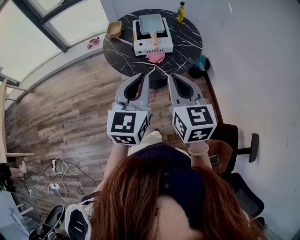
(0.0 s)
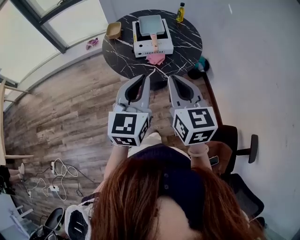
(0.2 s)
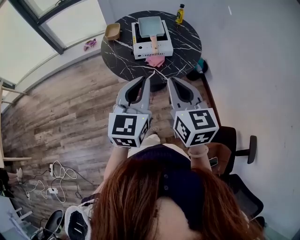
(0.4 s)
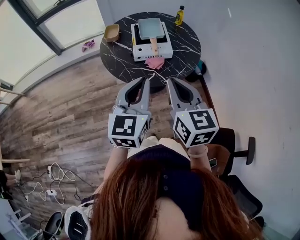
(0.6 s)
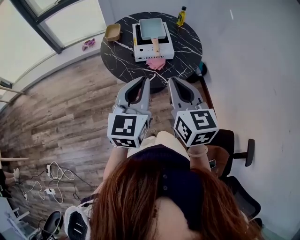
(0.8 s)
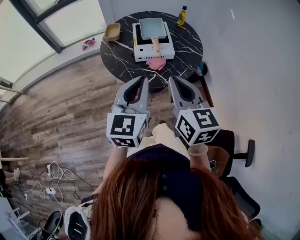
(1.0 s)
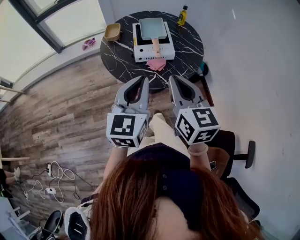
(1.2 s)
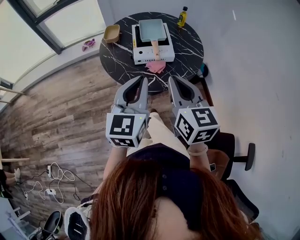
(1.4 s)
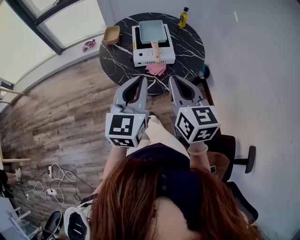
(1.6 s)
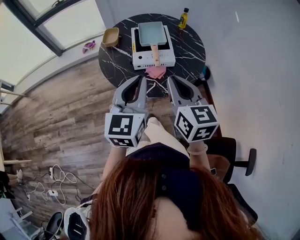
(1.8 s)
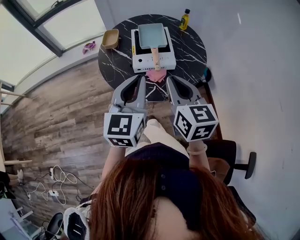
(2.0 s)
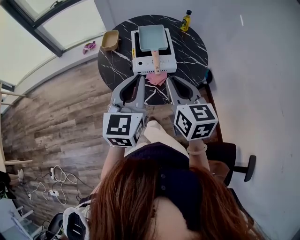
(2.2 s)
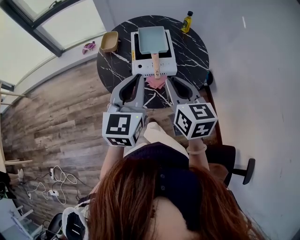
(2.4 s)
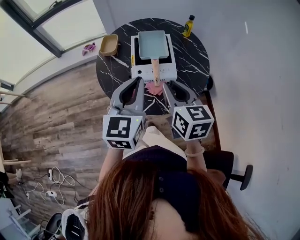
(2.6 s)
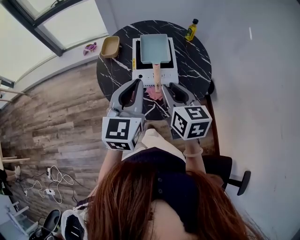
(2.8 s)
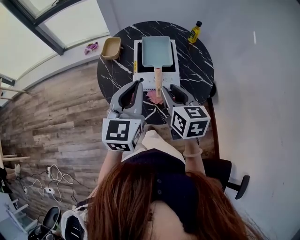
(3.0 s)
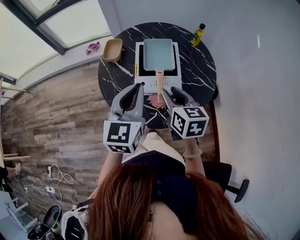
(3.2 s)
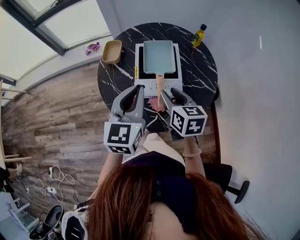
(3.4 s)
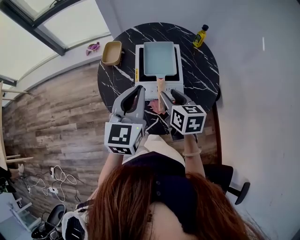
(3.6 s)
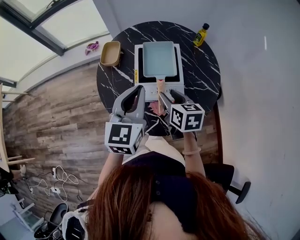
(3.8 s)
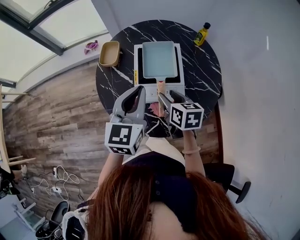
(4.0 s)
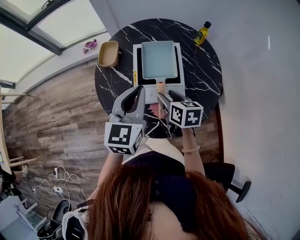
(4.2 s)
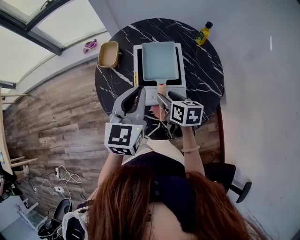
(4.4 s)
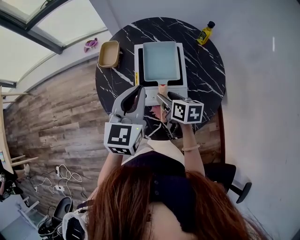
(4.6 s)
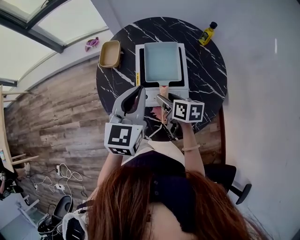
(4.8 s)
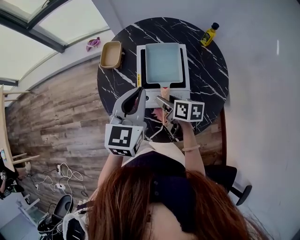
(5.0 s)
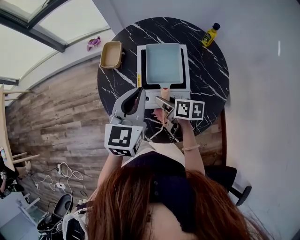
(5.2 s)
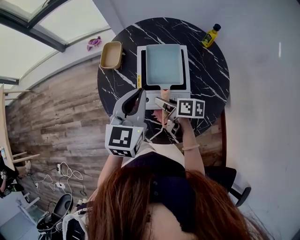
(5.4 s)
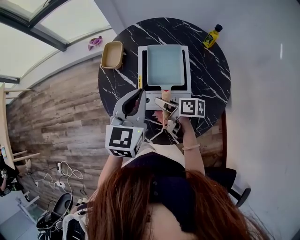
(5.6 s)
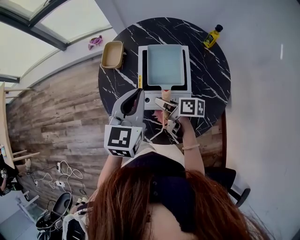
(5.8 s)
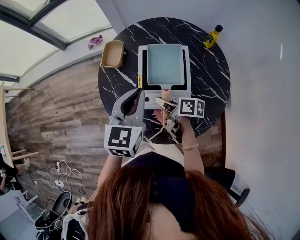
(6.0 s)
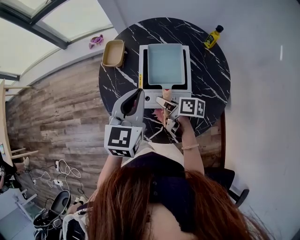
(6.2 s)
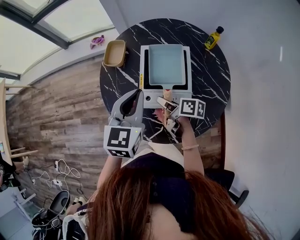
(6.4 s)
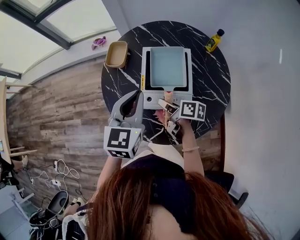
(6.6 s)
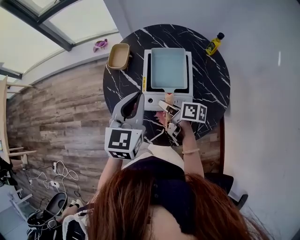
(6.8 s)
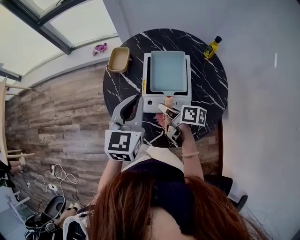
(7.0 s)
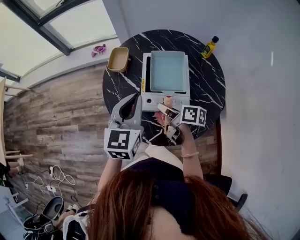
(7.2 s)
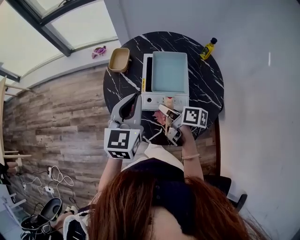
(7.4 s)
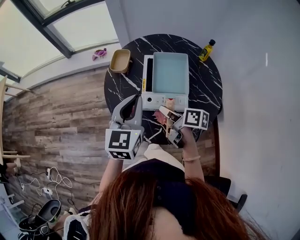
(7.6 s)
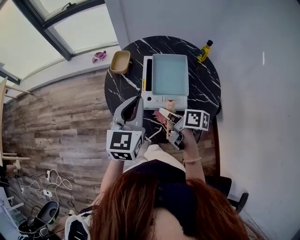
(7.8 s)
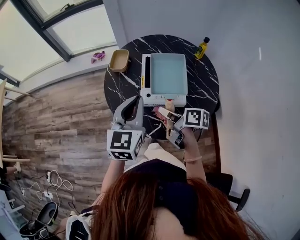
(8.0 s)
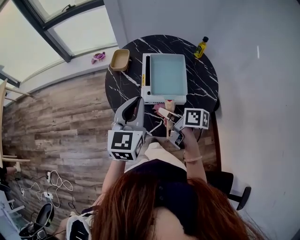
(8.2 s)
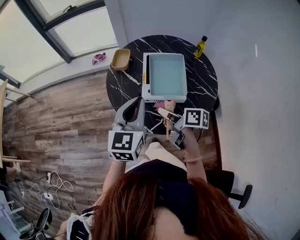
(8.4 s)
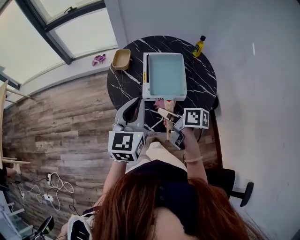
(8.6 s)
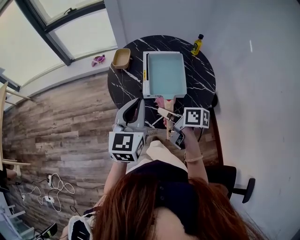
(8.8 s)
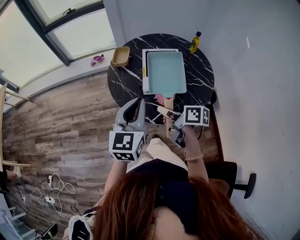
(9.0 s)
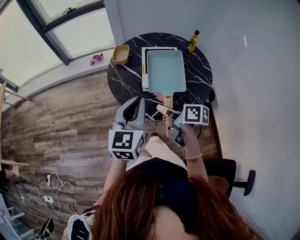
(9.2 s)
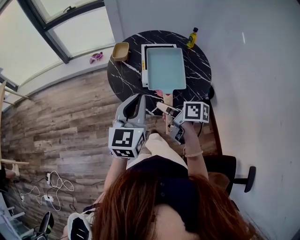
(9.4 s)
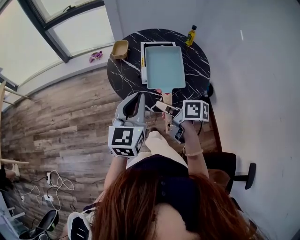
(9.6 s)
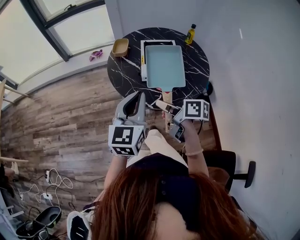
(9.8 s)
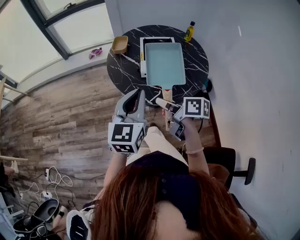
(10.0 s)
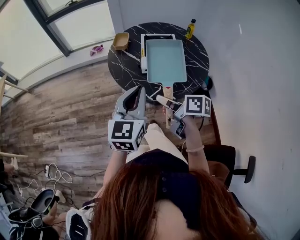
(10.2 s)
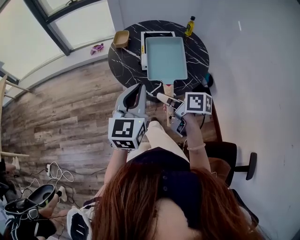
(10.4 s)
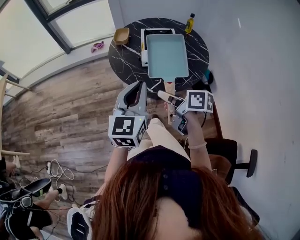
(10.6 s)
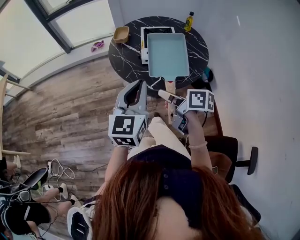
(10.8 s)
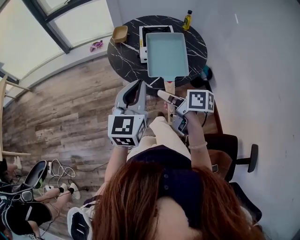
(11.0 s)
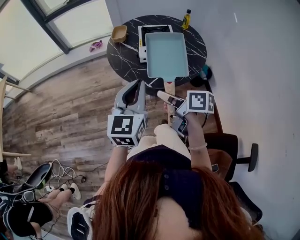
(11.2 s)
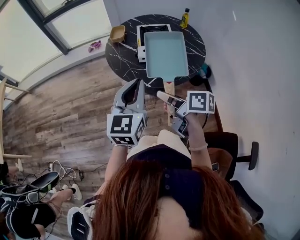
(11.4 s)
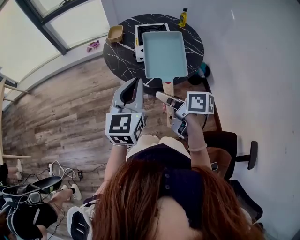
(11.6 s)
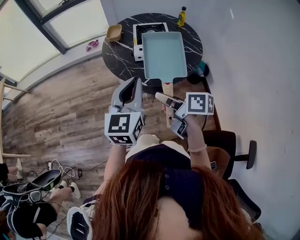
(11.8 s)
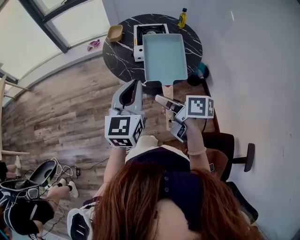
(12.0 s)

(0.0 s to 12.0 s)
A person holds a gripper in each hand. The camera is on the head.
0.0 s - 1.6 s: Both grippers move forward, roughly 10 cm.
1.6 s - 3.0 s: The left gripper heads forward, covering about 20 cm. Meanwhile the right gripper is displaced forward and downward by some 20 cm, and opens up.
3.0 s - 4.4 s: The left gripper is displaced forward by approximately 10 cm; the right gripper shifts approximately 15 cm downward and forward, turns by some 20 degrees, and opens up.
4.4 s - 6.0 s: The right gripper ends up approximately 5 cm from where it was, changes its angle by about 30 degrees, and closes up.
6.0 s - 7.6 s: The right gripper is displaced upward and backward by roughly 10 cm. Meanwhile the left gripper travels backward, to the left and upward by about 10 cm.
7.6 s - 9.0 s: Both grippers move backward and to the left, some 15 cm.
9.0 s - 10.4 s: Both grippers travel together backward, about 10 cm.
10.4 s - 12.0 s: The right gripper shifts some 10 cm backward; the left gripper changes place by some 5 cm.

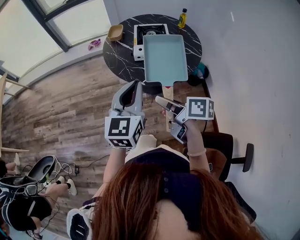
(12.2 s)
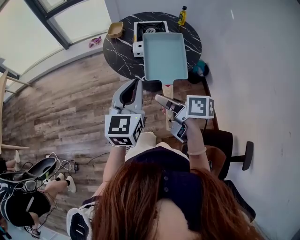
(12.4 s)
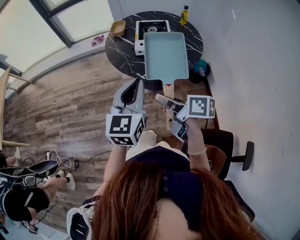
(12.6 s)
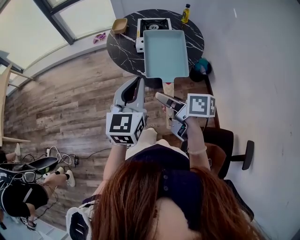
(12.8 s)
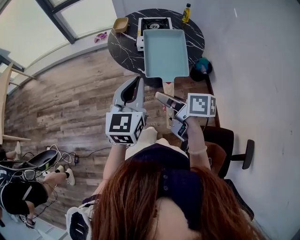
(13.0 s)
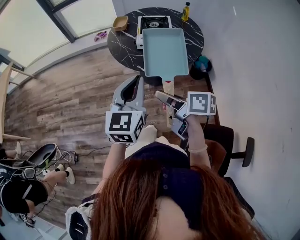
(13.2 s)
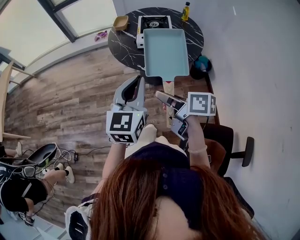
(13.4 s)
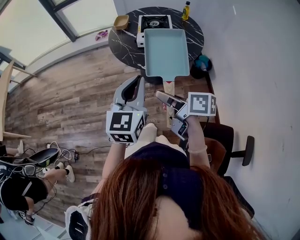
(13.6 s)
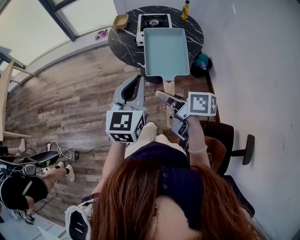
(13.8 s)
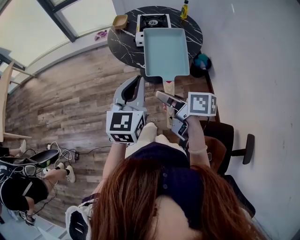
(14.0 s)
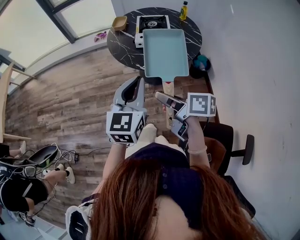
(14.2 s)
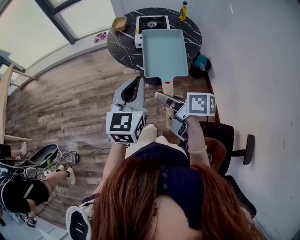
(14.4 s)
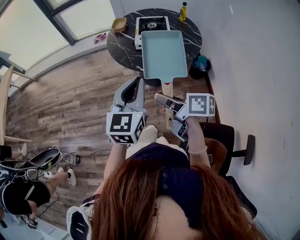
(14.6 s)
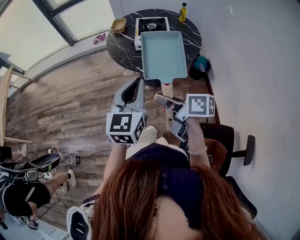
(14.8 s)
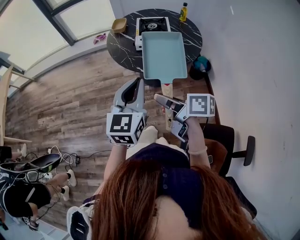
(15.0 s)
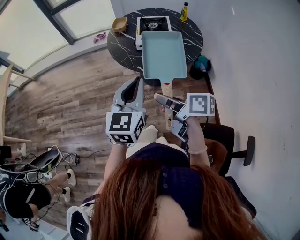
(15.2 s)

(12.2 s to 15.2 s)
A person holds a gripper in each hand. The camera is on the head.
12.2 s - 13.8 s: The two grippers go roughly 10 cm backward.
13.8 s - 15.2 s: There are only small adjustments of the grippers.

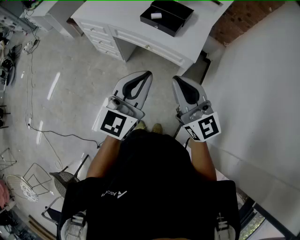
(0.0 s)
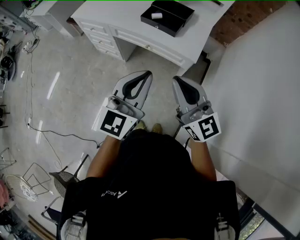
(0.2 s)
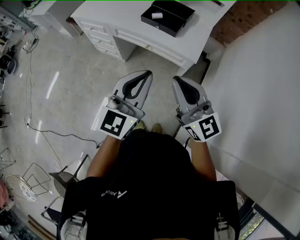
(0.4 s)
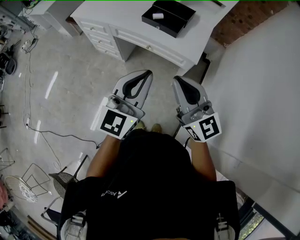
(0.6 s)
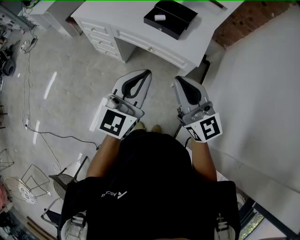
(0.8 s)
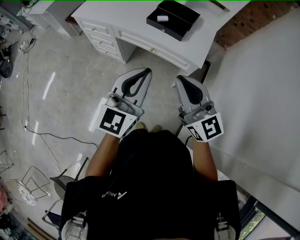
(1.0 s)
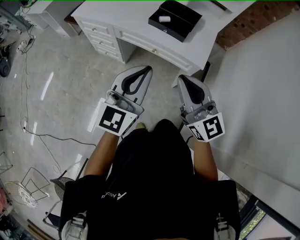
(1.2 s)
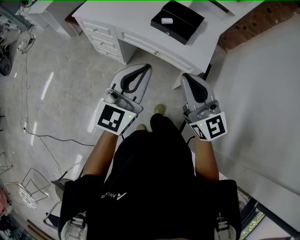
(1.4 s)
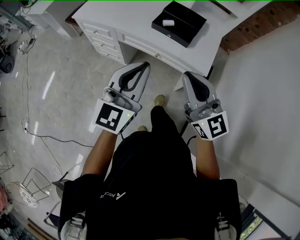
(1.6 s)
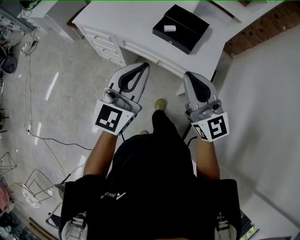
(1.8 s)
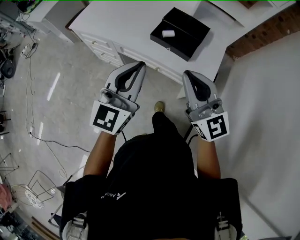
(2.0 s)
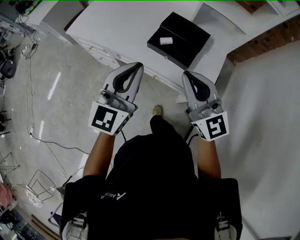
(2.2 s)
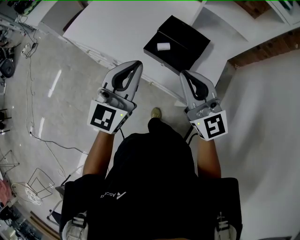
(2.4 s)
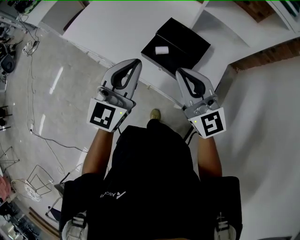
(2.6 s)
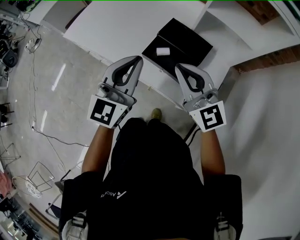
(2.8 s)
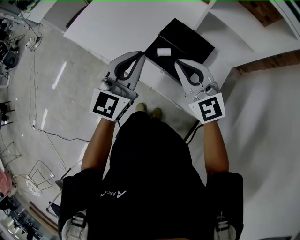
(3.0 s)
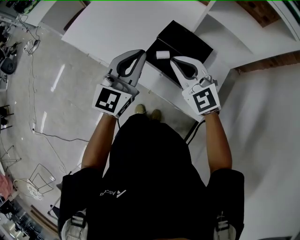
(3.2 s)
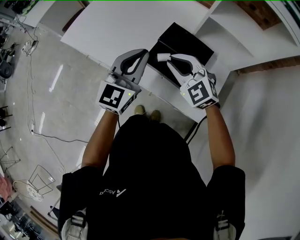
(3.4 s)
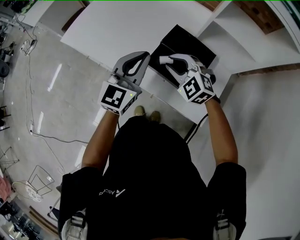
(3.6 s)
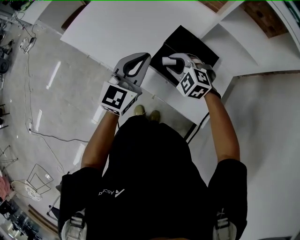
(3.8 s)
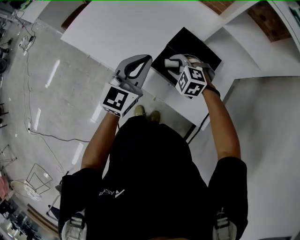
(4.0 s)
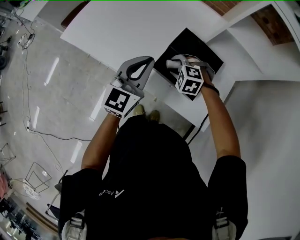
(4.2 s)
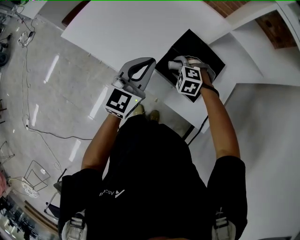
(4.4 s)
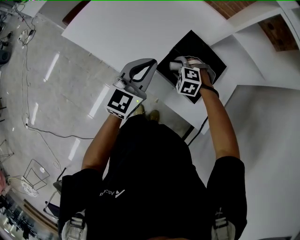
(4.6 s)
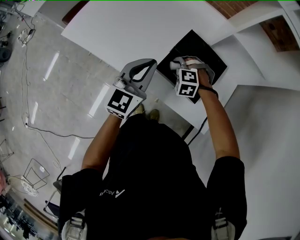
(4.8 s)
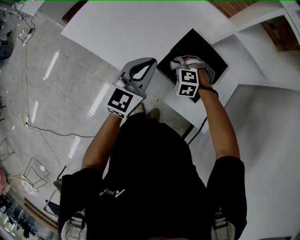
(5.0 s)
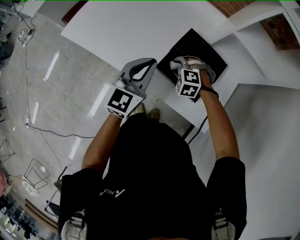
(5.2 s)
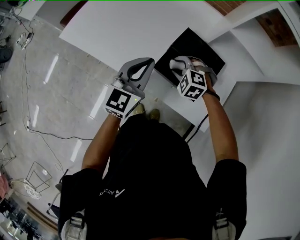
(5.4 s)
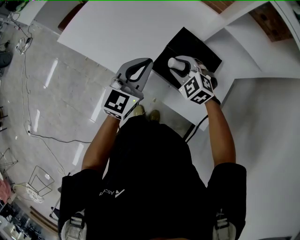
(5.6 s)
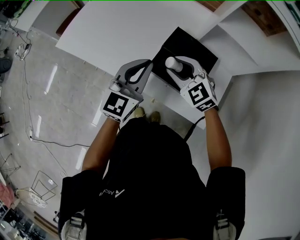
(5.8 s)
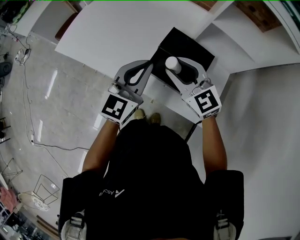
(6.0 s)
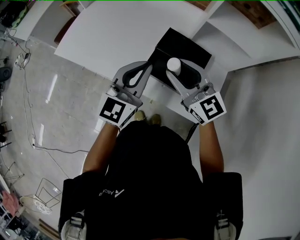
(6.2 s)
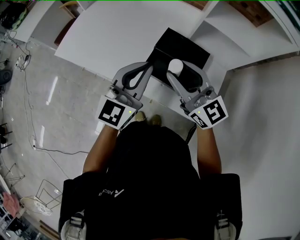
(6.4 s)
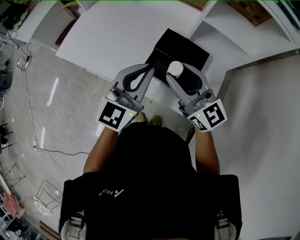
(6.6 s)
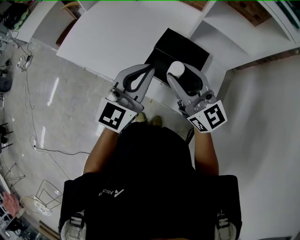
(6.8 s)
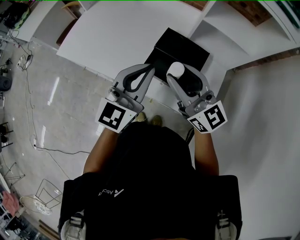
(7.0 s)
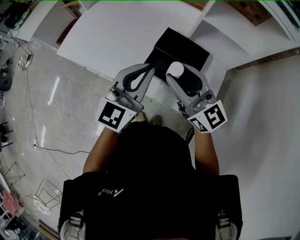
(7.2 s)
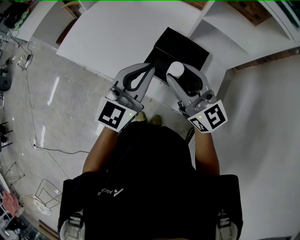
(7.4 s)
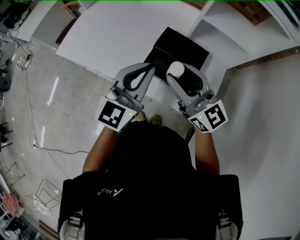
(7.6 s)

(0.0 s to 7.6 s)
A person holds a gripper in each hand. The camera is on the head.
0.0 s - 1.6 s: The two grippers go approximately 15 cm forward and to the left.
1.6 s - 3.0 s: The grippers both shift forward by roughly 30 cm. The right gripper turns by about 20 degrees.
3.0 s - 4.6 s: The right gripper is displaced downward and forward by roughly 30 cm, angles its fingers downward, by approximately 60 degrees, and opens its fingers. The left gripper travels forward and downward by roughly 15 cm.
4.6 s - 6.0 s: The left gripper ends up some 5 cm from where it was; the right gripper travels upward by approximately 20 cm, and tips its fingers upward by some 50 degrees.
6.0 s - 7.6 s: The right gripper travels upward and backward by roughly 10 cm, and turns by some 30 degrees; the left gripper ends up roughly 5 cm from where it was.

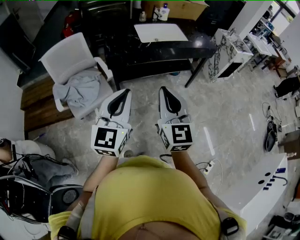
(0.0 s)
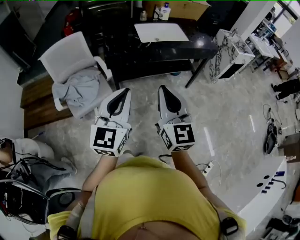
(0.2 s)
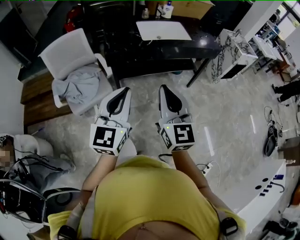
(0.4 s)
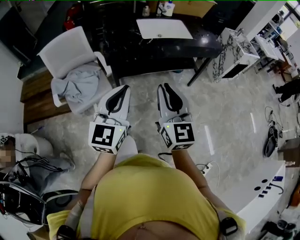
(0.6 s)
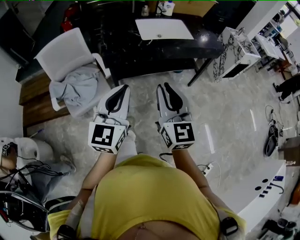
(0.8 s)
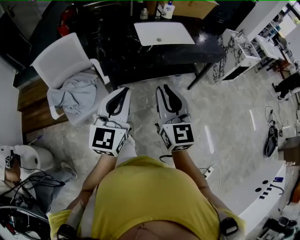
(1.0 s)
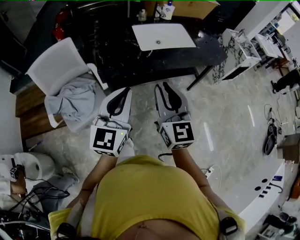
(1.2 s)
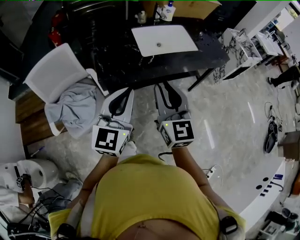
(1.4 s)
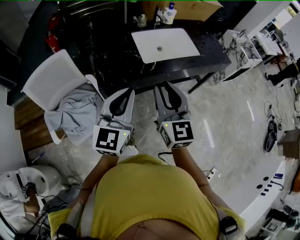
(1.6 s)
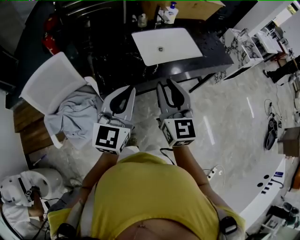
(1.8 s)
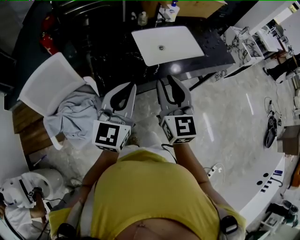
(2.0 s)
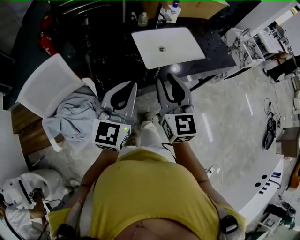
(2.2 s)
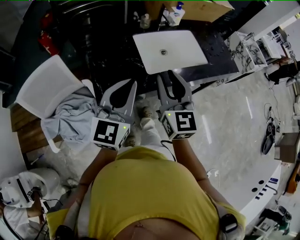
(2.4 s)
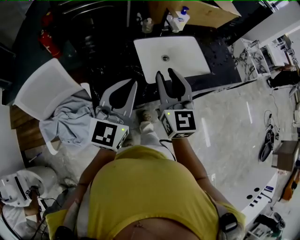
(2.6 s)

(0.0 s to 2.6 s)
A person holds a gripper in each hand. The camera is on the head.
0.0 s - 1.2 s: The grippers both shift forward by approximately 20 cm.
1.2 s - 2.6 s: The grippers both shift forward by about 30 cm.
